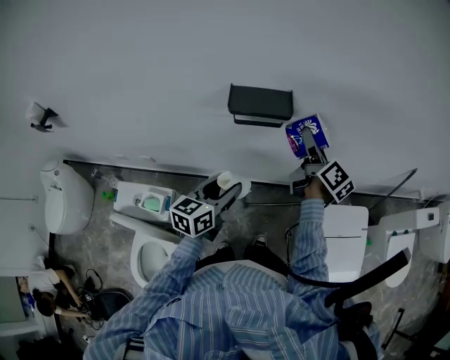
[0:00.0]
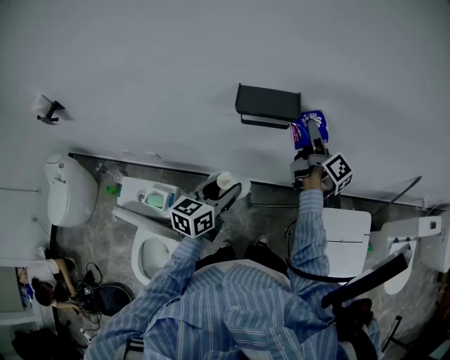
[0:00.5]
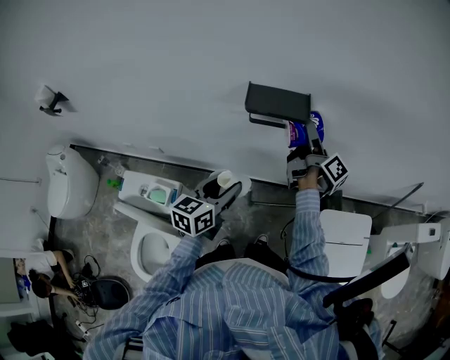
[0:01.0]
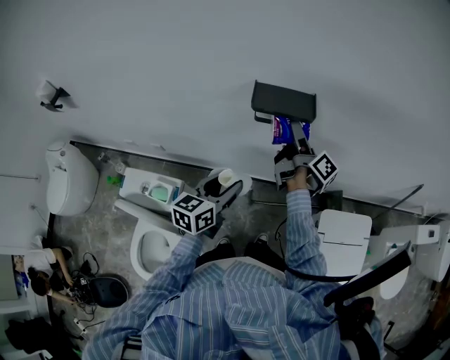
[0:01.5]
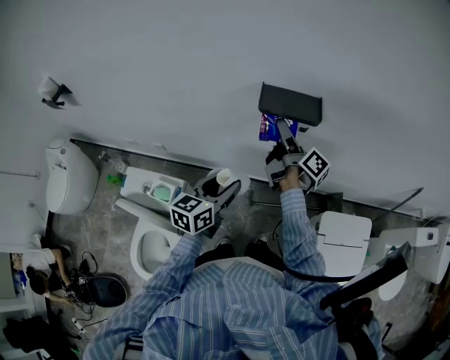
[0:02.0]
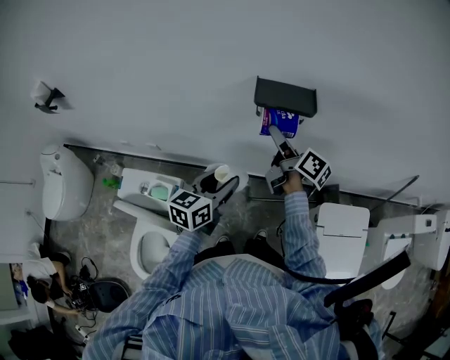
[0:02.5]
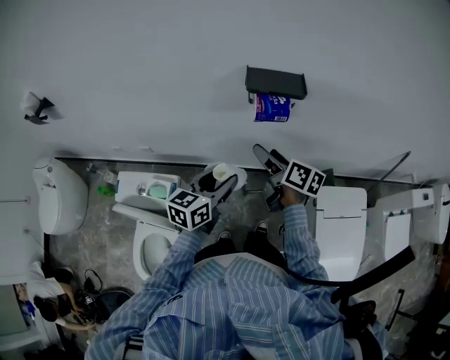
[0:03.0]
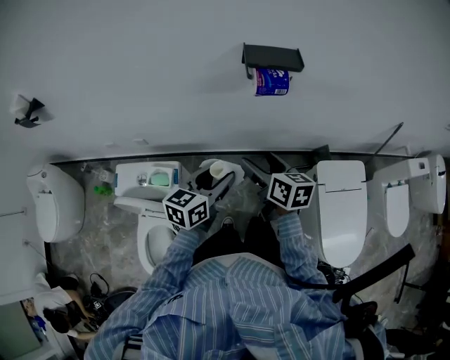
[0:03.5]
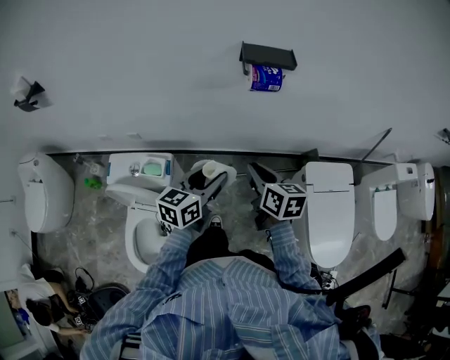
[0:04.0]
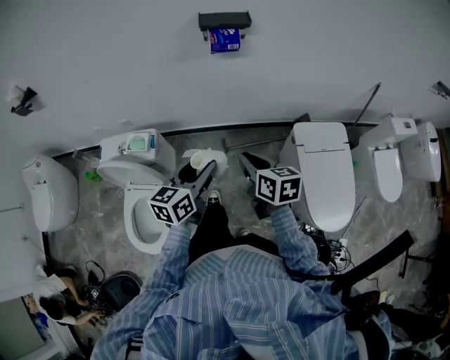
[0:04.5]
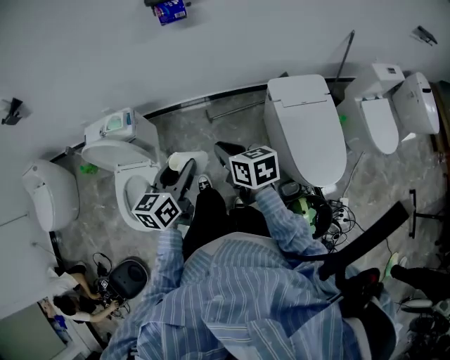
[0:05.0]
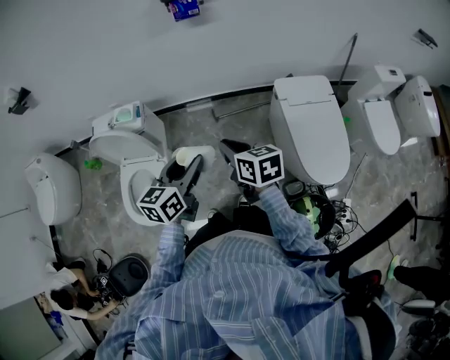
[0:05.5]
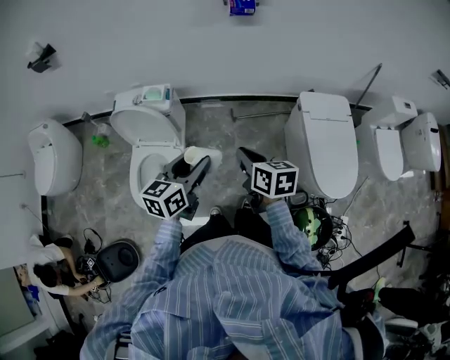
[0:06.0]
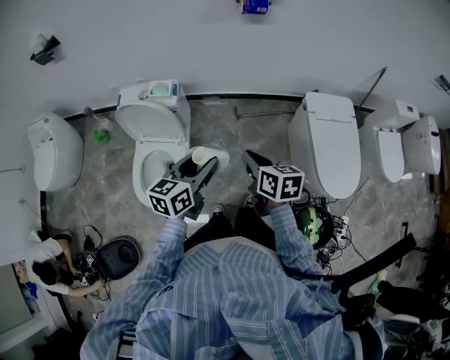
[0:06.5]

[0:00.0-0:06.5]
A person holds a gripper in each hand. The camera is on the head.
0:00.0 to 0:02.0: The left gripper moves to the left, approximately 5 cm. The right gripper is displaced to the left by roughly 15 cm, and changes its angle by some 30 degrees.
0:02.0 to 0:04.5: The right gripper travels backward by about 40 cm, tilts its fingers about 30 degrees downward, and closes. The left gripper goes some 25 cm backward.
0:04.5 to 0:06.5: The right gripper is displaced backward by approximately 20 cm; the left gripper goes approximately 20 cm backward and to the left.

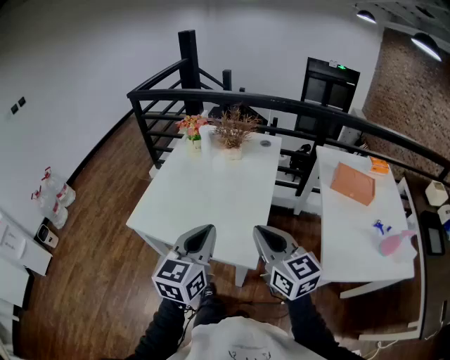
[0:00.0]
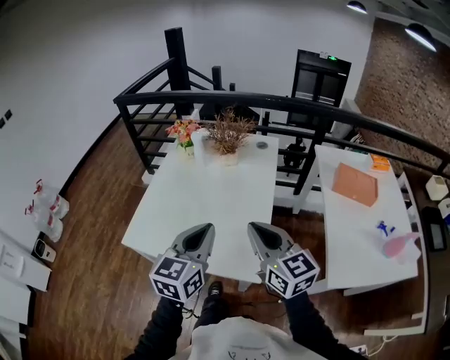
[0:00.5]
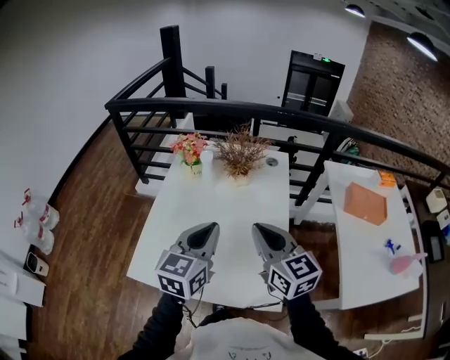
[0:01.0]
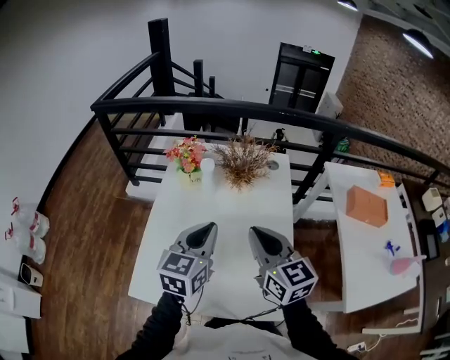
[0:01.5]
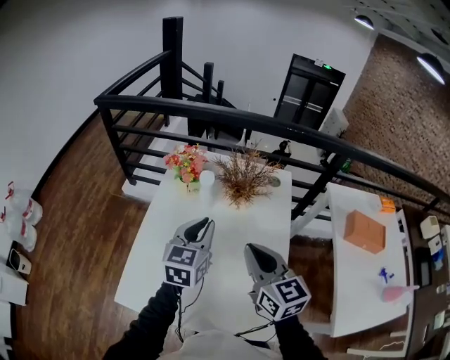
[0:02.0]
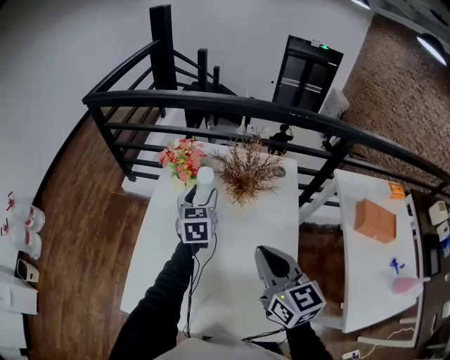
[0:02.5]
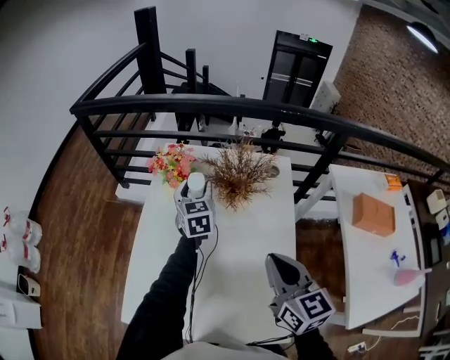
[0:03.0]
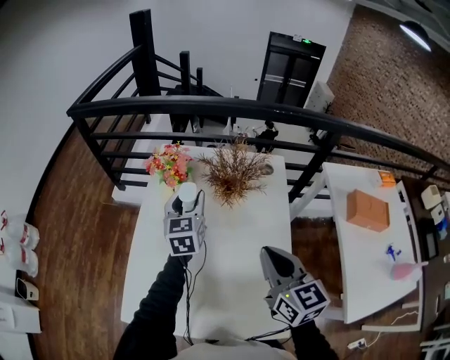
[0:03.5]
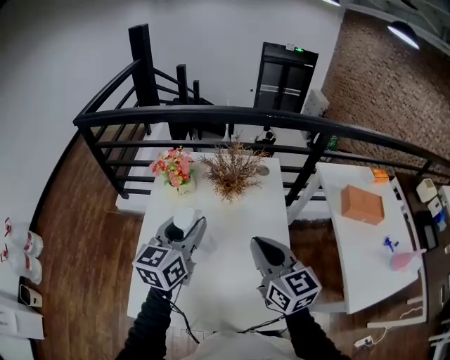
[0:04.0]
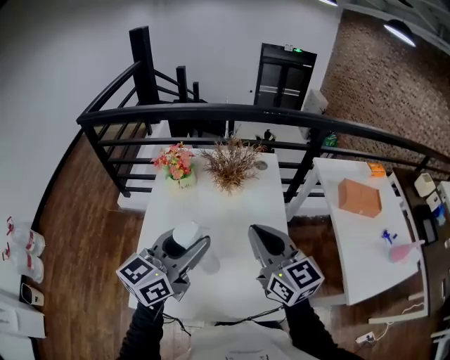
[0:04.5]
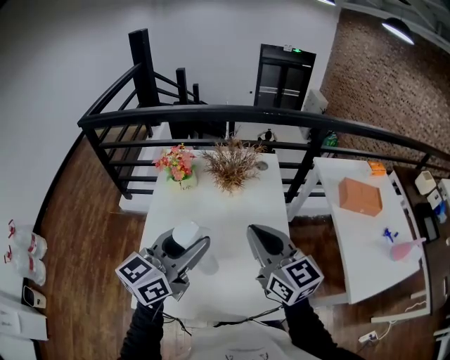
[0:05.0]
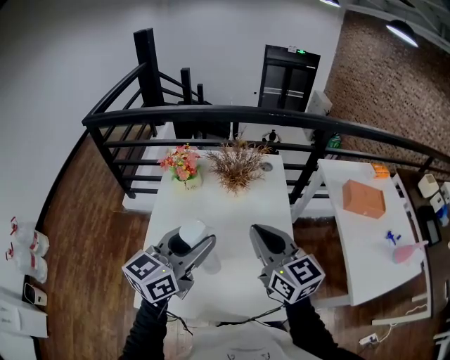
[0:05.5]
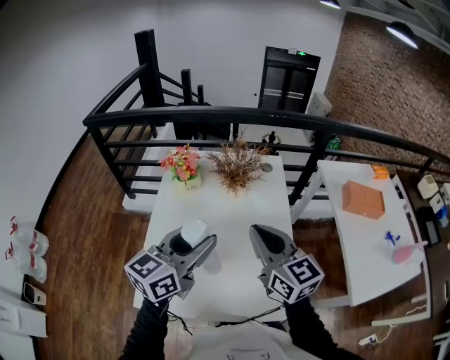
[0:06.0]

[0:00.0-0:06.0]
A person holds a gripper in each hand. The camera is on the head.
0:00.0 to 0:02.0: The pair of grippers is taken forward, roughly 50 cm.
0:02.0 to 0:04.0: The left gripper moves about 25 cm forward and comes back, and opens.
0:04.0 to 0:06.0: The right gripper shifts by about 5 cm; the left gripper travels backward by approximately 10 cm.

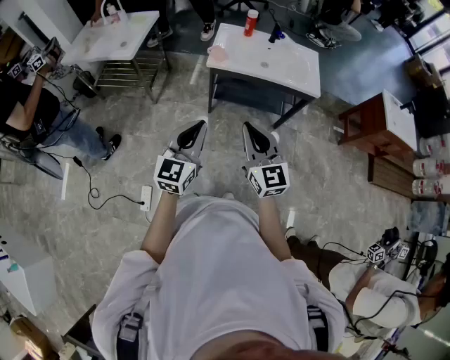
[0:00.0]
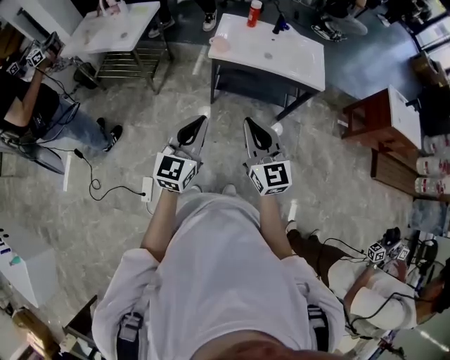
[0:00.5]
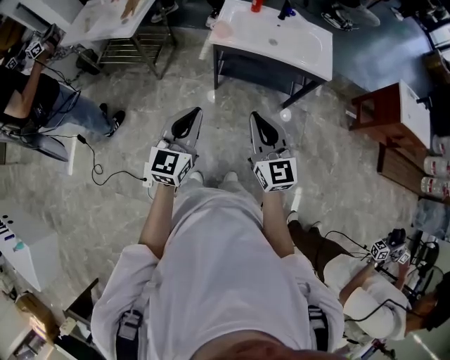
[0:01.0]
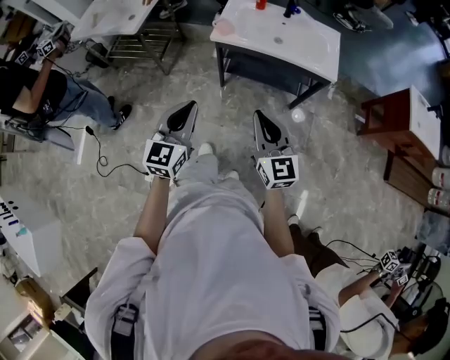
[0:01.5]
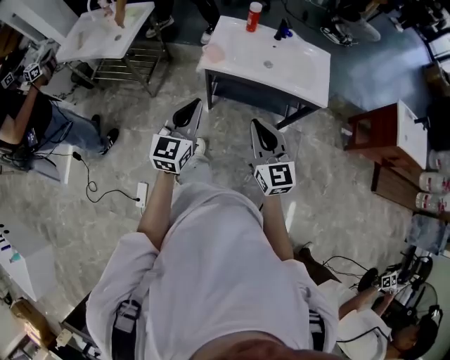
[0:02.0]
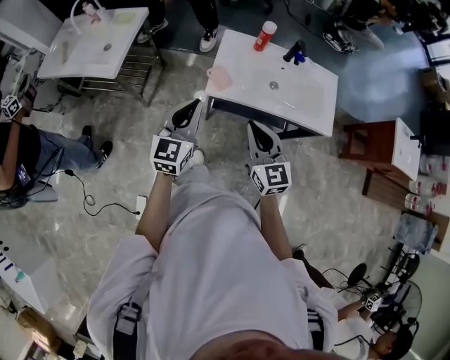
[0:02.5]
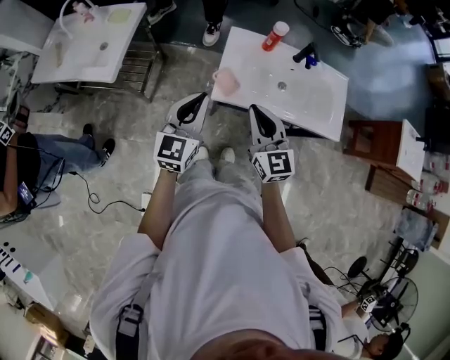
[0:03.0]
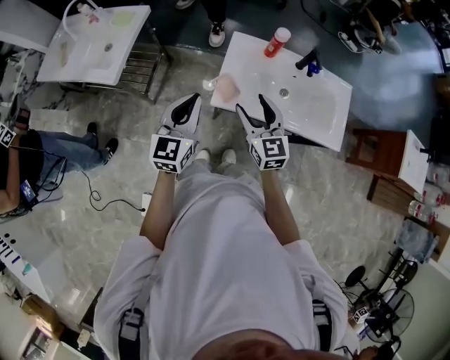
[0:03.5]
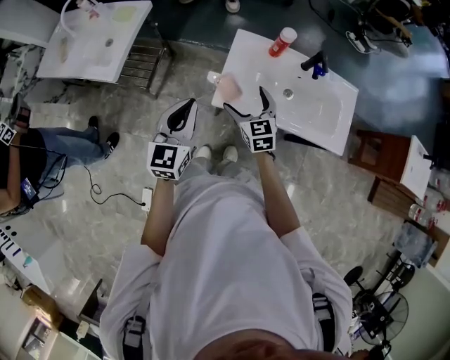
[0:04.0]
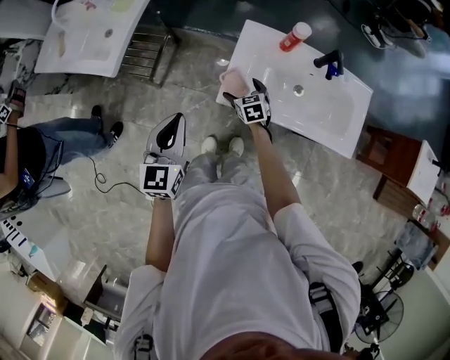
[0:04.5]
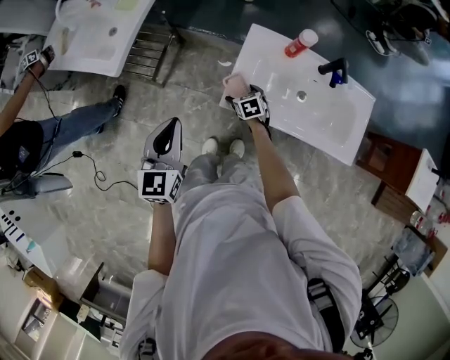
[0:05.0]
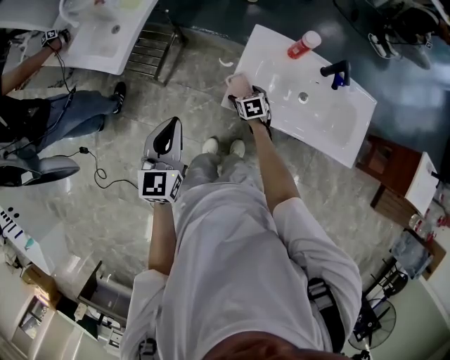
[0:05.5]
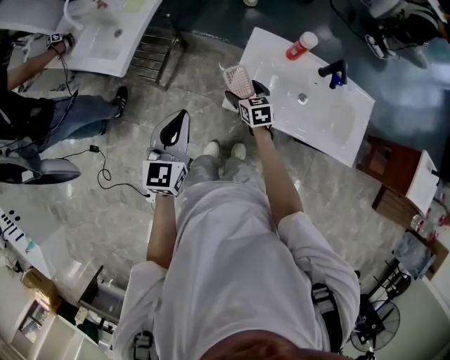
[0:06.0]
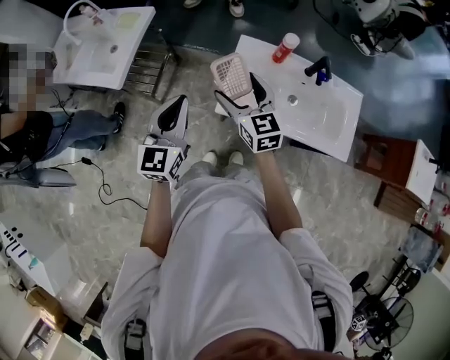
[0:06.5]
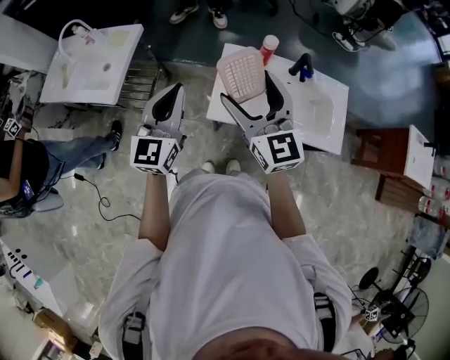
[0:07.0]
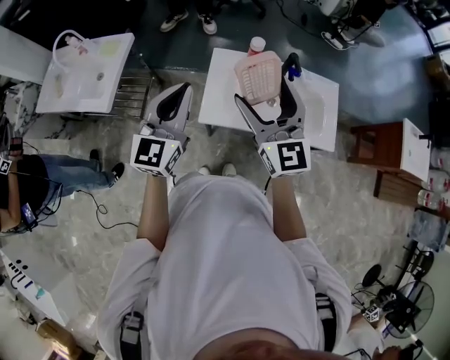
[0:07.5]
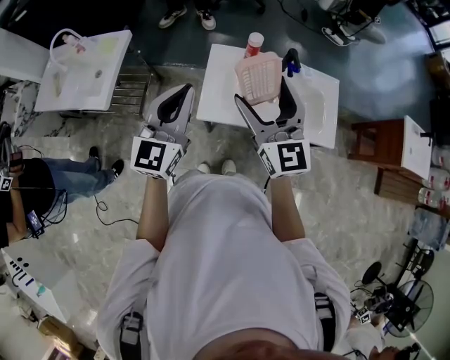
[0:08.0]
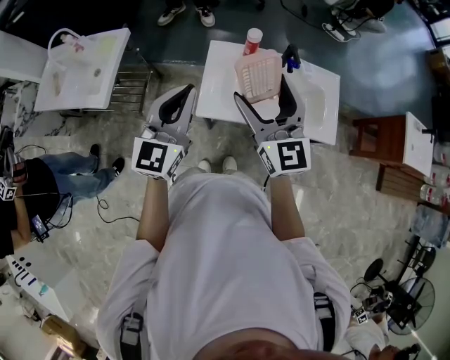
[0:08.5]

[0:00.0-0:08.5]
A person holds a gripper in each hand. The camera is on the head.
0:00.0 to 0:02.0: The right gripper goes approximately 15 cm forward and to the right. The left gripper heads forward, covering approximately 15 cm.
0:02.0 to 0:04.0: The right gripper travels forward and downward by approximately 40 cm, swivels roughly 20 degrees, and opens its fingers. The left gripper is displaced forward by about 30 cm.
0:04.0 to 0:06.5: The left gripper shifts by approximately 5 cm. The right gripper moves some 20 cm downward and comes back.
0:06.5 to 0:08.5: The left gripper shifts about 15 cm to the right and upward. The right gripper heads upward, to the right and backward, covering about 20 cm, and turns by approximately 30 degrees.

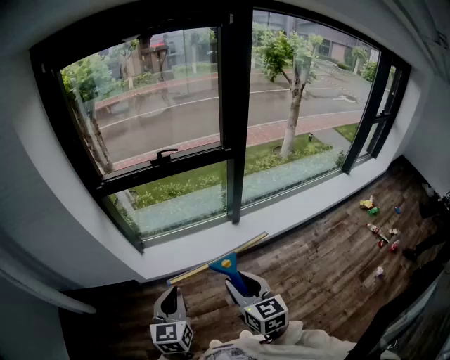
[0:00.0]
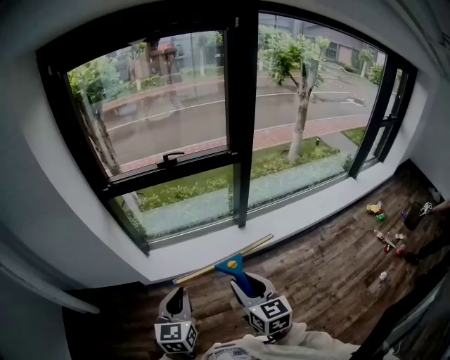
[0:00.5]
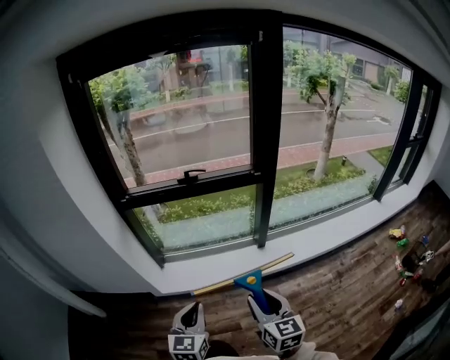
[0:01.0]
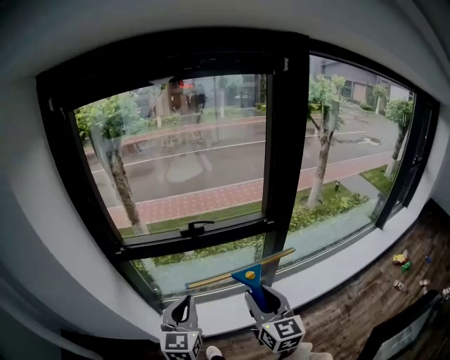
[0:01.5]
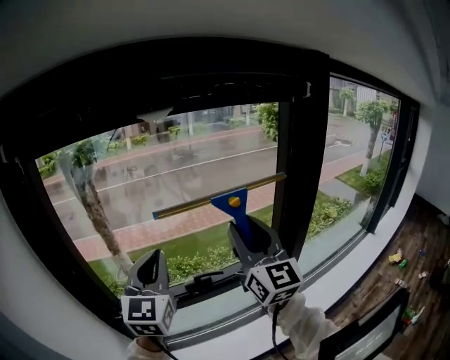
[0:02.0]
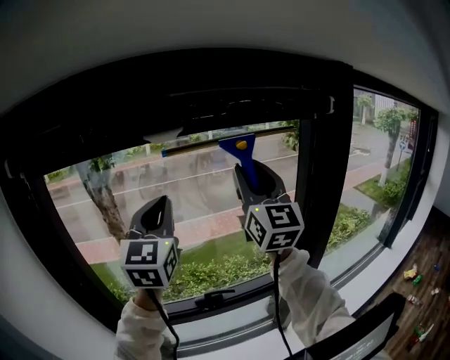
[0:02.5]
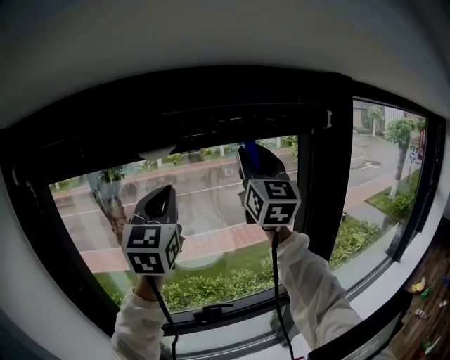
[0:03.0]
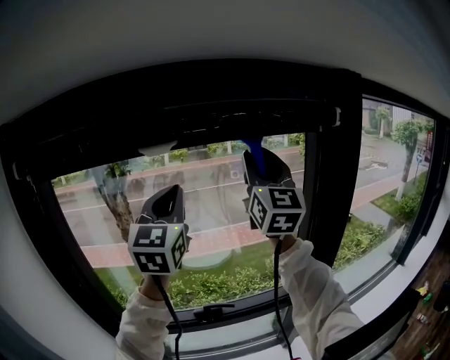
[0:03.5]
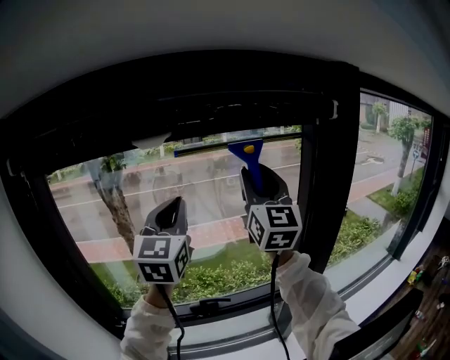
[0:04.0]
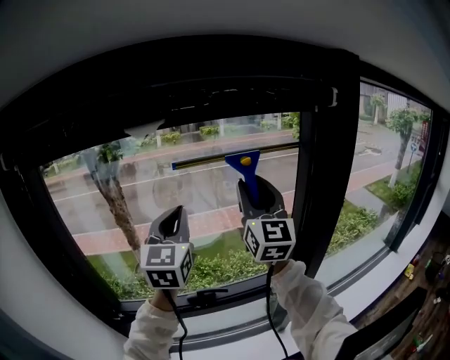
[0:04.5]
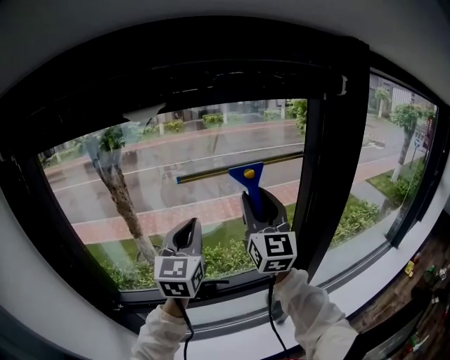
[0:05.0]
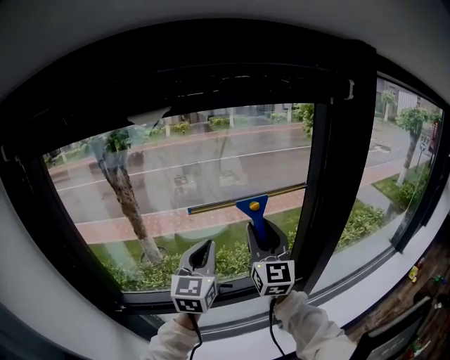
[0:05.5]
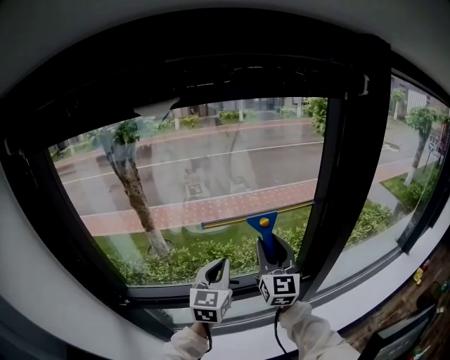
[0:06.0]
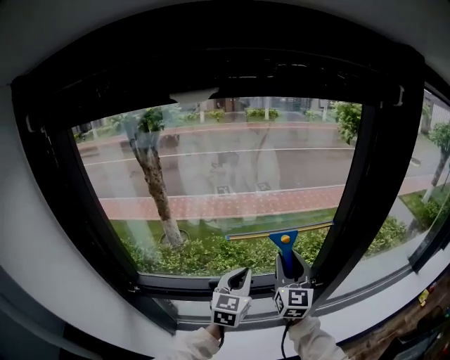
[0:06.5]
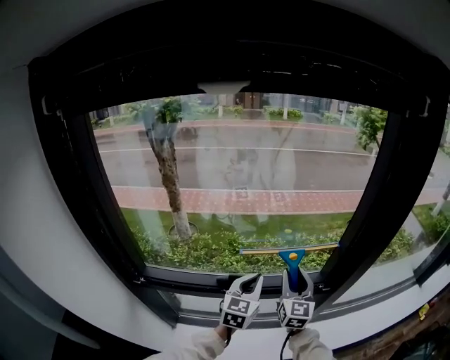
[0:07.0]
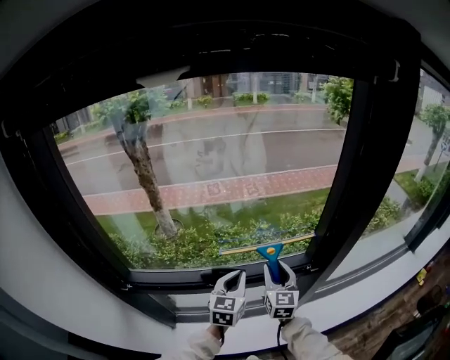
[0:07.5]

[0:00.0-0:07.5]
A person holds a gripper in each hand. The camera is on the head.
0:00.0 to 0:02.0: The two grippers travel together, forward, about 60 cm. The grippers both shift upward by about 30 cm. The left gripper turns by some 30 degrees; the right gripper tips its fingers upward by approximately 40 degrees.
0:02.0 to 0:04.0: The left gripper moves forward, upward and to the right, approximately 20 cm. Meanwhile the right gripper shifts approximately 20 cm forward and upward.
0:04.0 to 0:05.5: Both grippers travel together downward, approximately 20 cm.
0:05.5 to 0:07.5: The grippers both shift downward by some 25 cm. The right gripper changes its angle by about 20 degrees.
